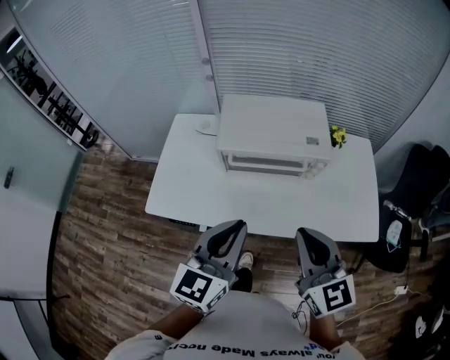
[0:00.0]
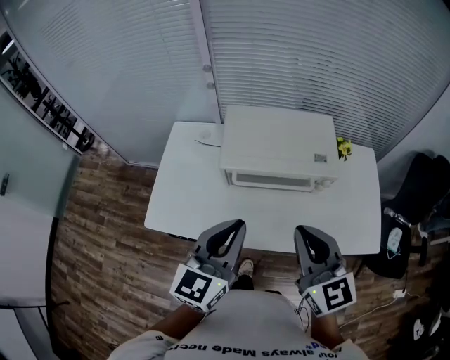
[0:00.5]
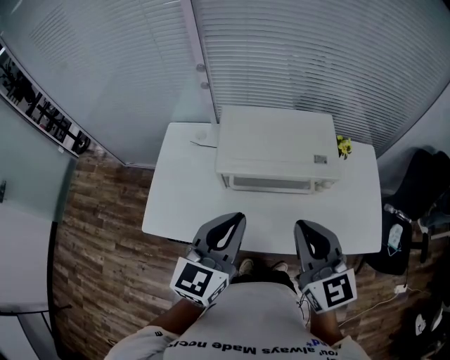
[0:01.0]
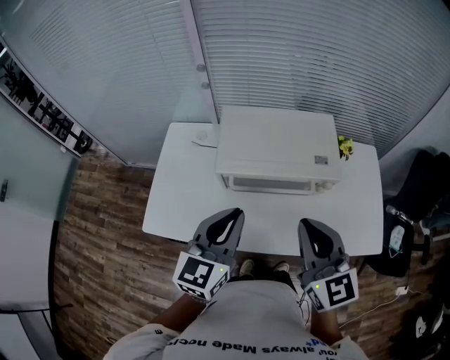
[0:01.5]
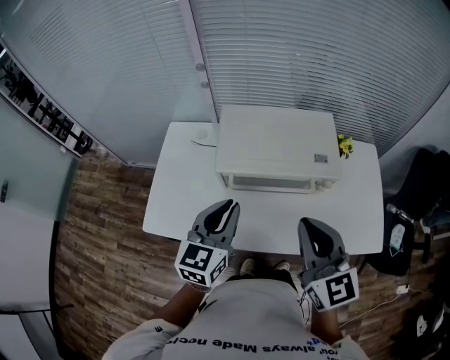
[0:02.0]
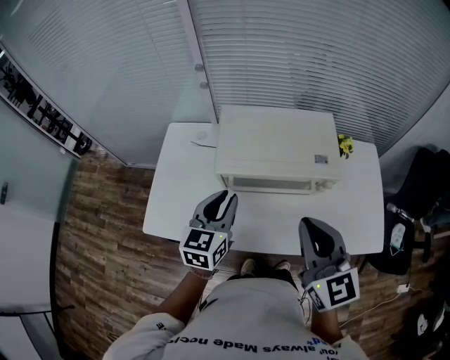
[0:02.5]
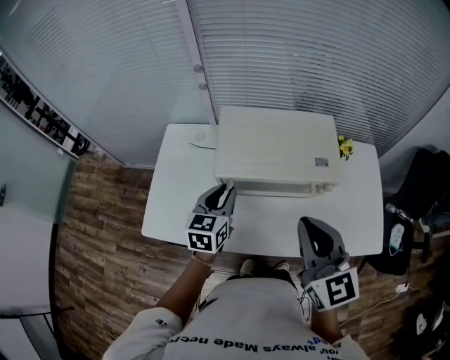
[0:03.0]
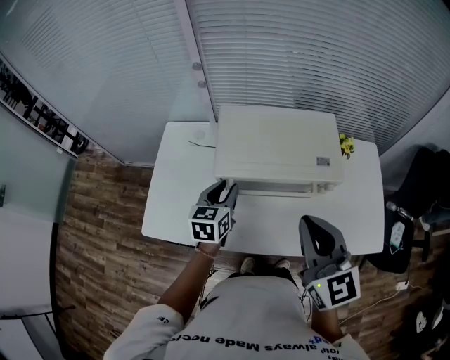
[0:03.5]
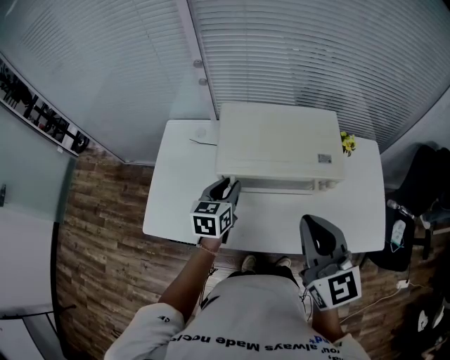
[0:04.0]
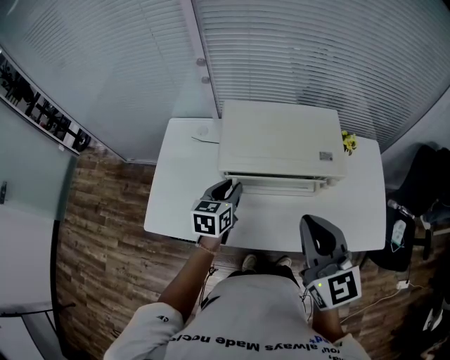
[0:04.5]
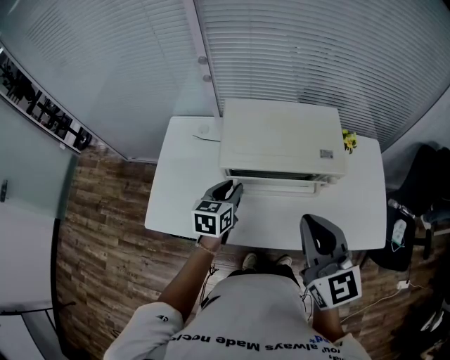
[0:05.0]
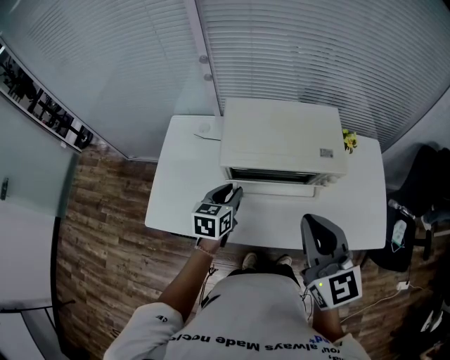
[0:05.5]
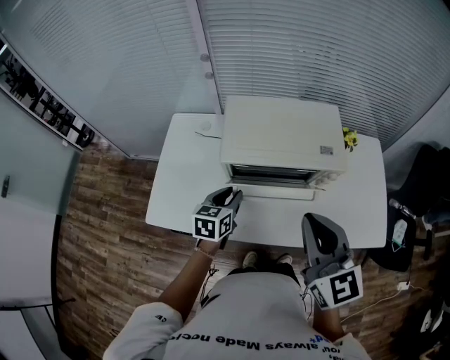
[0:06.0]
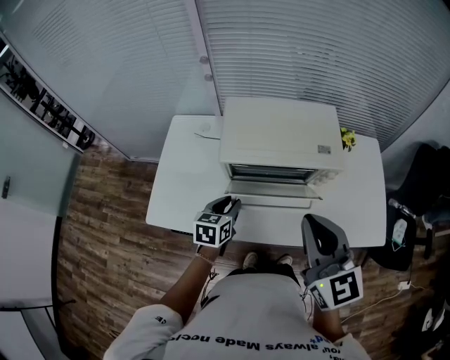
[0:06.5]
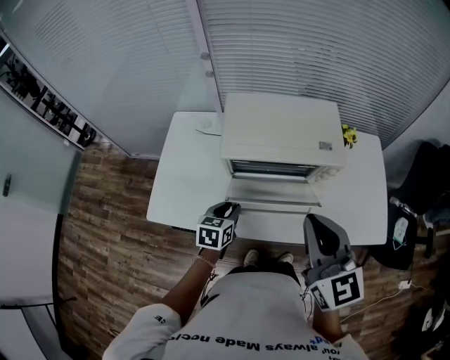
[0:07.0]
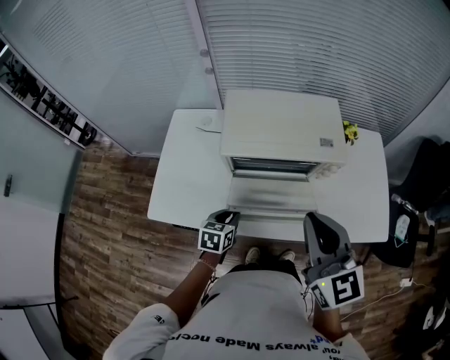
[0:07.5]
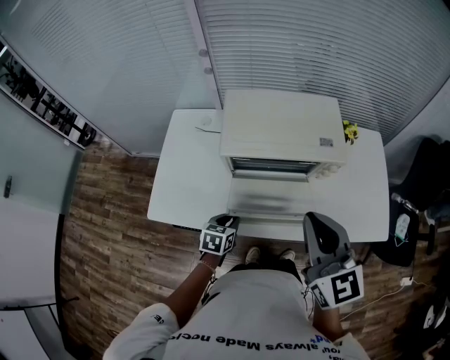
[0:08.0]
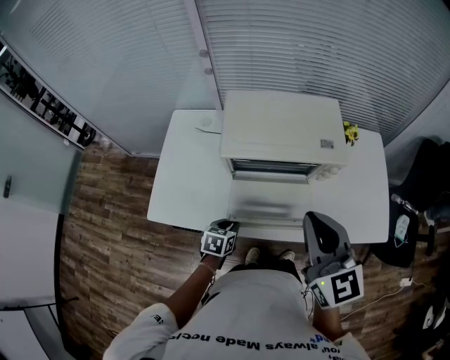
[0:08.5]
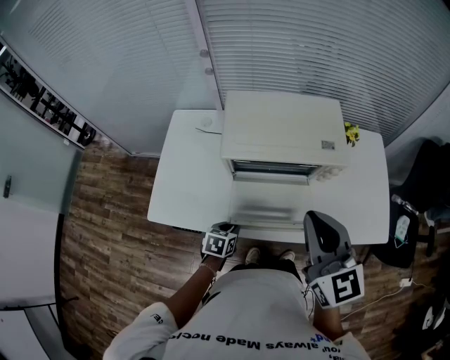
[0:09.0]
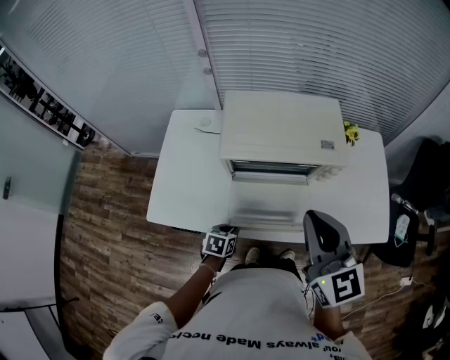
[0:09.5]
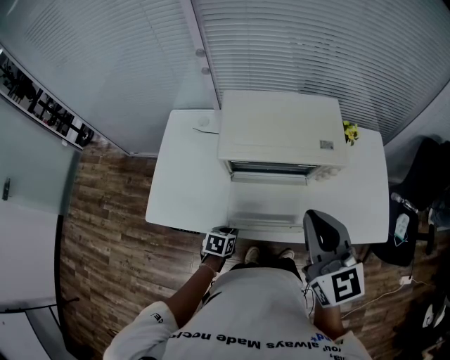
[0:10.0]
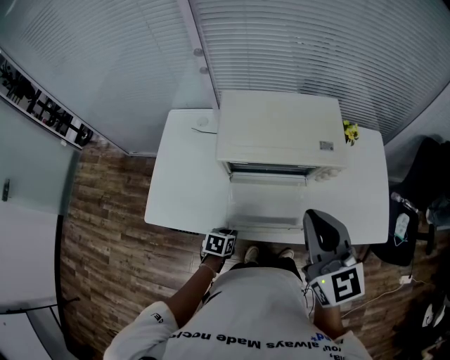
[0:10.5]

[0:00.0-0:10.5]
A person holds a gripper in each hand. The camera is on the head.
0:00.0 to 0:02.0: The right gripper moves forward, some 10 cm. The left gripper travels forward and downward by about 15 cm.
0:02.0 to 0:04.0: The left gripper travels downward and forward by approximately 15 cm, and opens.
0:04.0 to 0:06.5: The left gripper shifts some 10 cm backward and downward.
0:06.5 to 0:08.5: The left gripper heads downward and backward, covering some 15 cm.
0:08.5 to 0:10.5: The left gripper shifts about 5 cm downward.

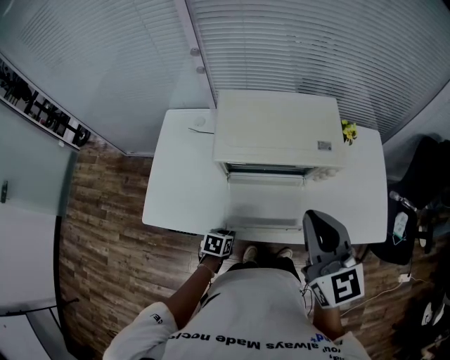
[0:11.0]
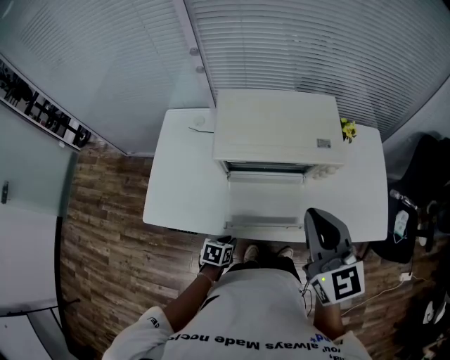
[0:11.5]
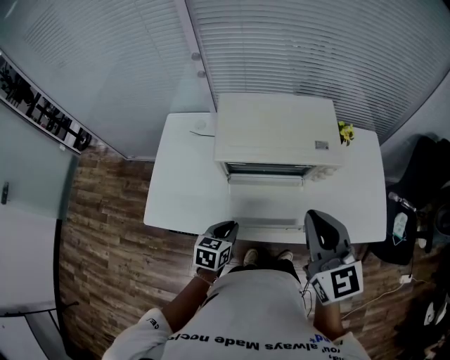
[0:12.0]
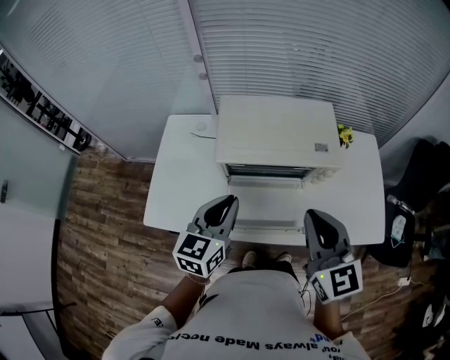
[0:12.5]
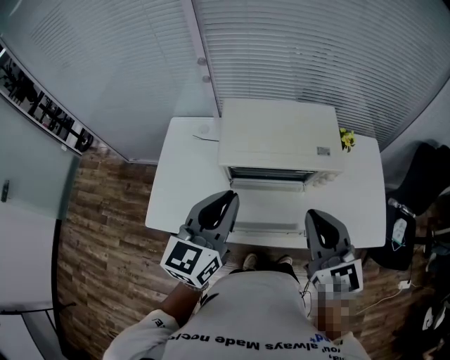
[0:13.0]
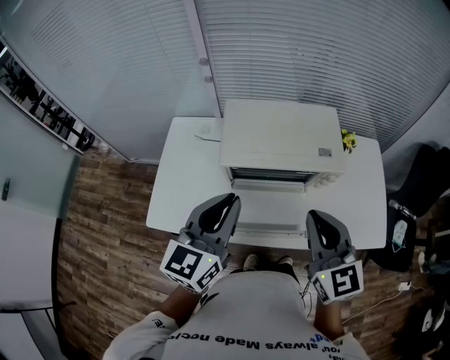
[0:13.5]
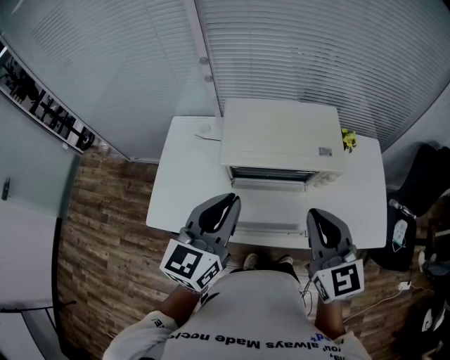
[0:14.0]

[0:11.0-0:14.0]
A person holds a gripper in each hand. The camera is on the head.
0:11.0 to 0:12.5: The left gripper is displaced upward by some 35 cm, and points its fingers about 50 degrees further upward.
0:12.5 to 0:14.0: The left gripper heads upward, covering approximately 10 cm.

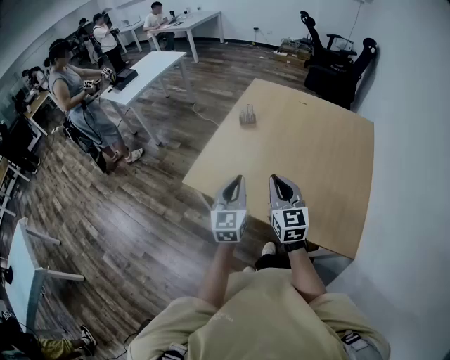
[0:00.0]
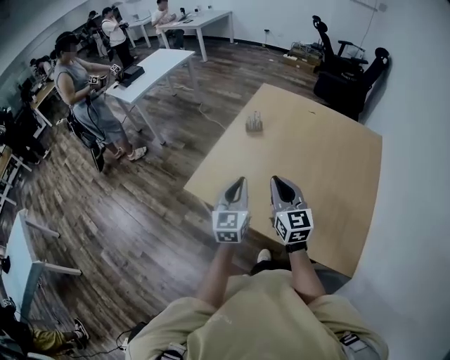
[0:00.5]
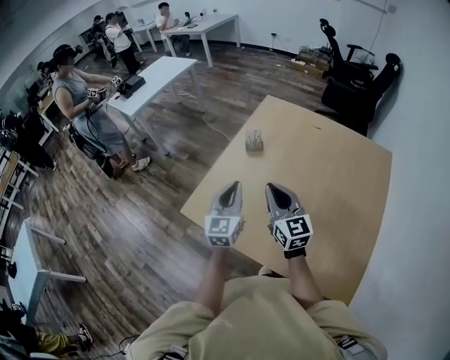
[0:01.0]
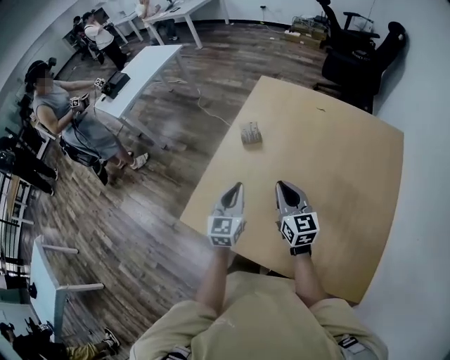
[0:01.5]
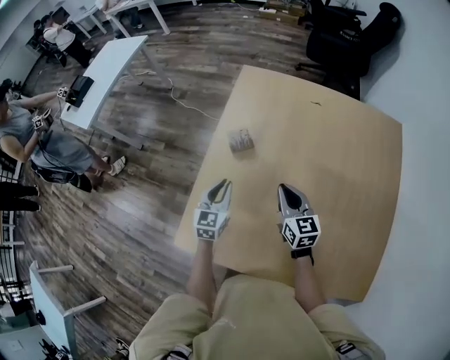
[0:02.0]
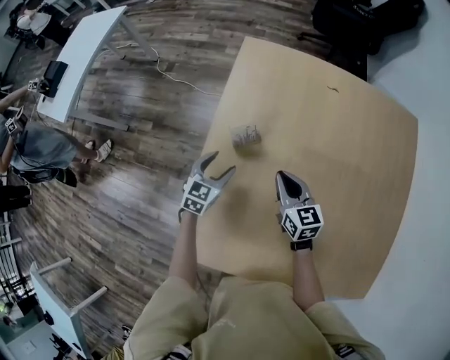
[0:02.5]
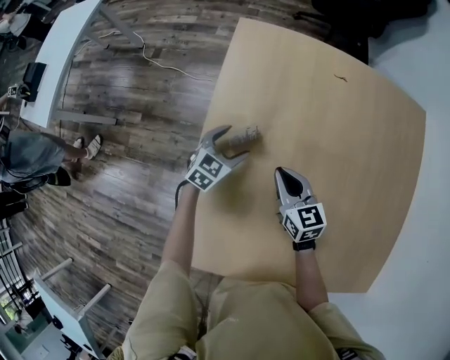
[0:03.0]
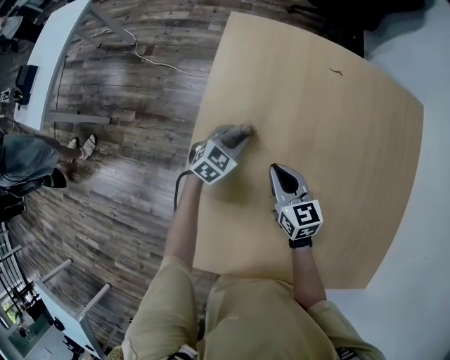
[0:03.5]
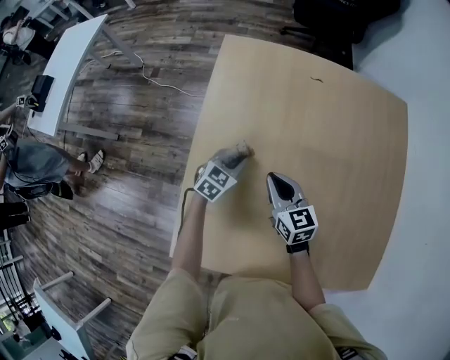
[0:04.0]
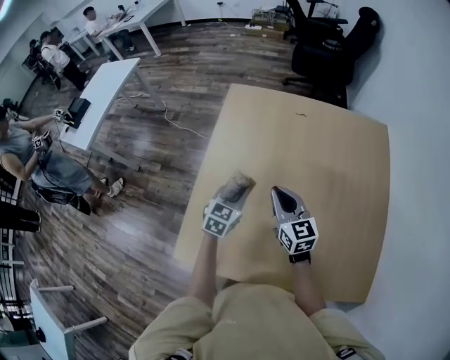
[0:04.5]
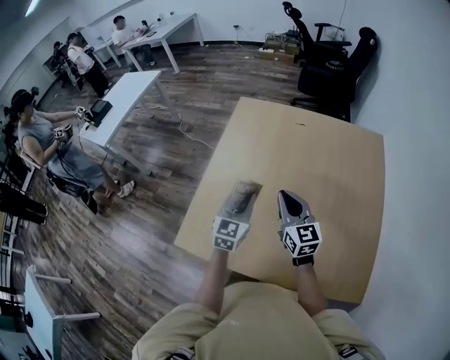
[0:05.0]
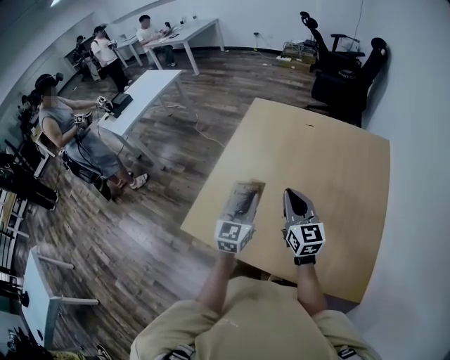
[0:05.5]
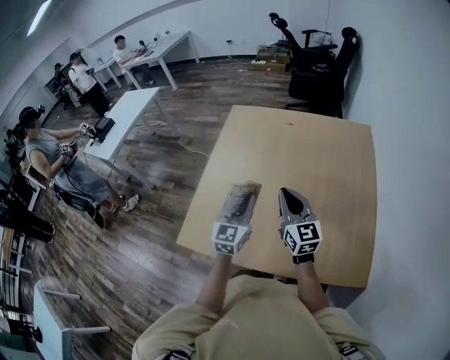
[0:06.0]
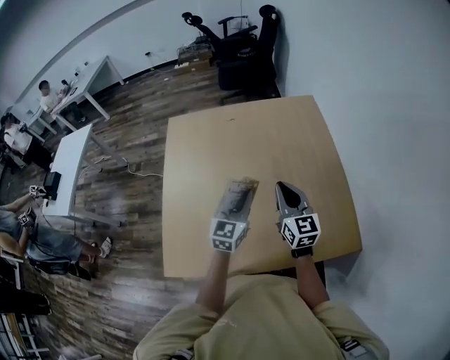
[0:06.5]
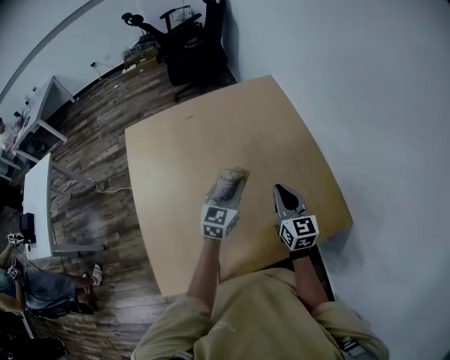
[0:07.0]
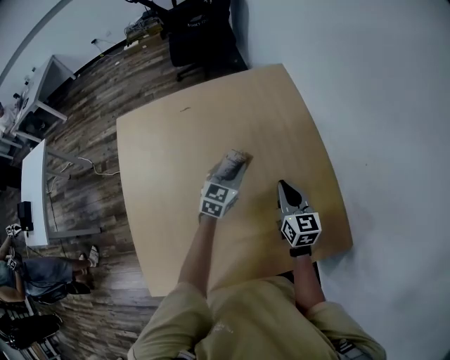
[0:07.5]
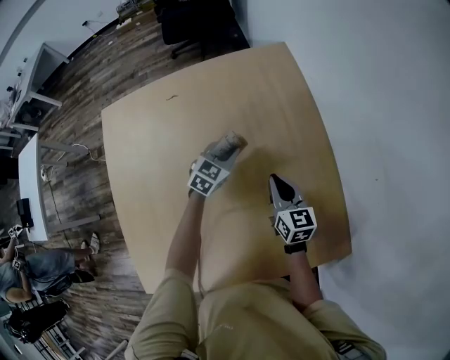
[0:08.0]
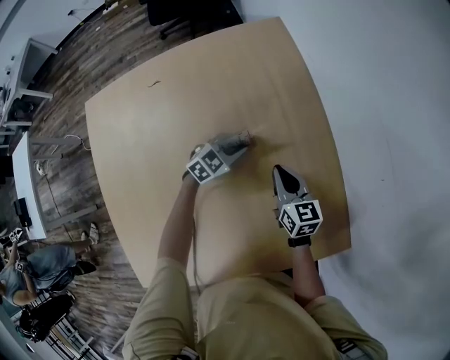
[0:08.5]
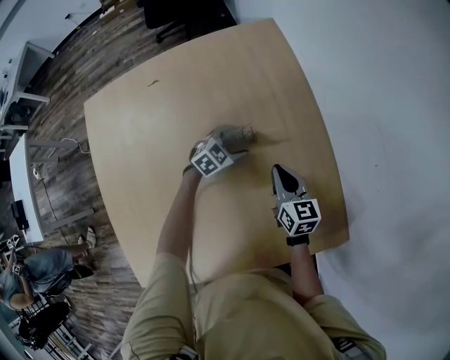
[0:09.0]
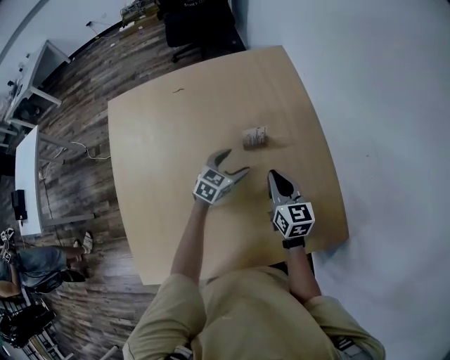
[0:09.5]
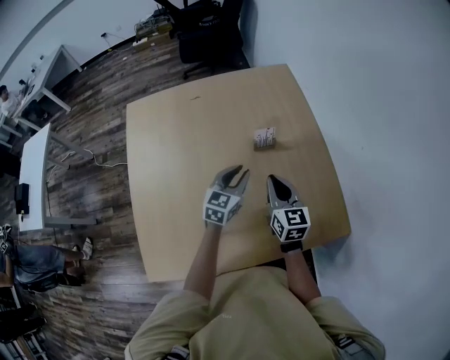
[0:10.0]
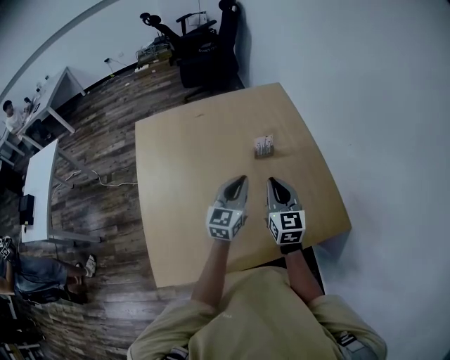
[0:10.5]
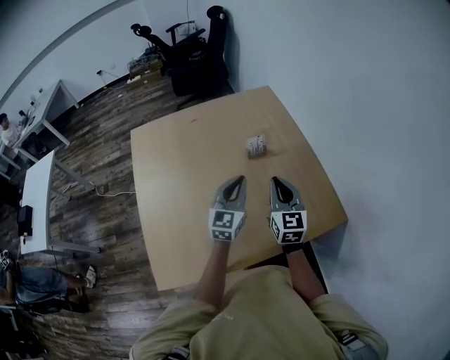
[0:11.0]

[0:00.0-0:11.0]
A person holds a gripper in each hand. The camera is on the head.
0:00.0 to 0:02.0: The two grippers go roughly 40 cm forward and downward. The right gripper rotates about 20 degrees; the left gripper changes its angle by roughly 20 degrees.
0:02.0 to 0:03.5: The left gripper shifts roughly 30 cm forward and downward, swivels roughly 40 degrees, and opens, then closes once more. The right gripper travels forward, downward and to the left by approximately 20 cm.
0:03.5 to 0:05.5: The right gripper is displaced backward, upward and to the right by some 40 cm, and rotates about 30 degrees. Meanwhile the left gripper heads backward and upward, covering about 50 cm, and tilts its fingers about 30 degrees upward.
0:05.5 to 0:07.5: The right gripper shifts by some 30 cm, and turns by some 40 degrees, while the left gripper ends up roughly 40 cm from where it was, and changes its angle by some 50 degrees.
0:07.5 to 0:09.0: The right gripper goes roughly 15 cm downward and forward, while the left gripper shifts some 20 cm downward and forward, rotates some 40 degrees, and opens its fingers.
0:09.0 to 0:11.0: The right gripper travels backward and upward by roughly 30 cm, and changes its angle by approximately 30 degrees, while the left gripper travels upward and backward by about 40 cm, tilts its fingers about 40 degrees upward, and closes.

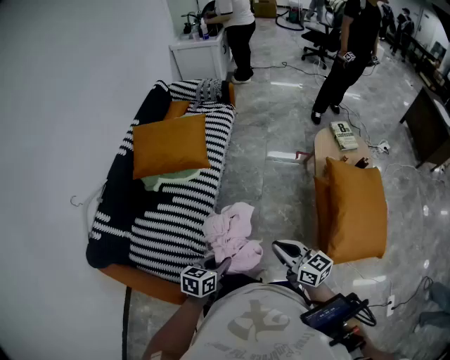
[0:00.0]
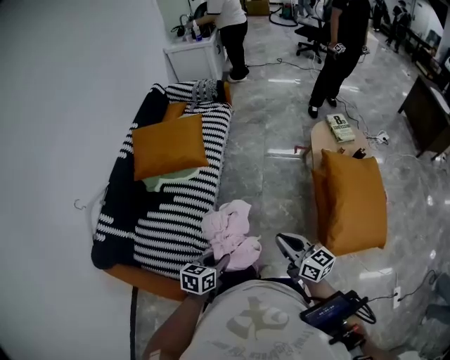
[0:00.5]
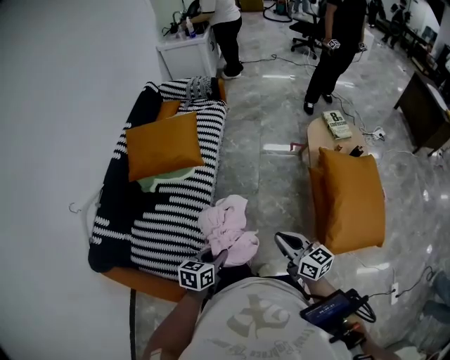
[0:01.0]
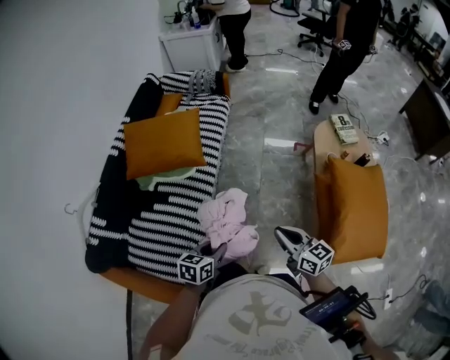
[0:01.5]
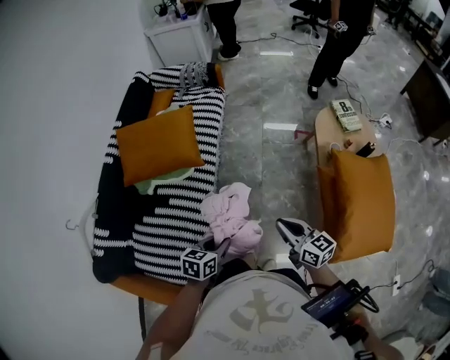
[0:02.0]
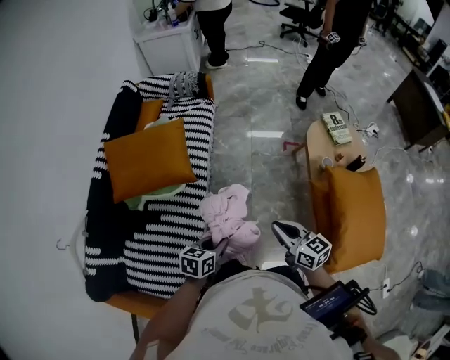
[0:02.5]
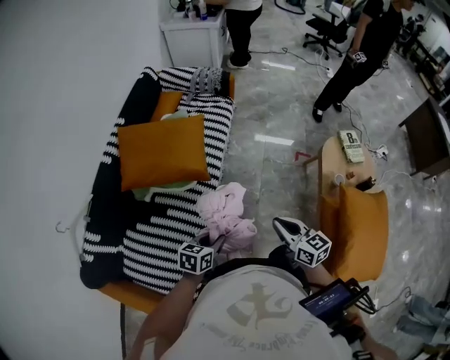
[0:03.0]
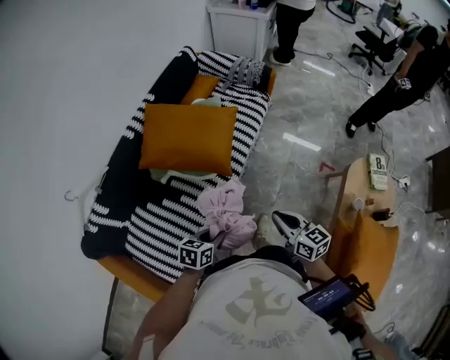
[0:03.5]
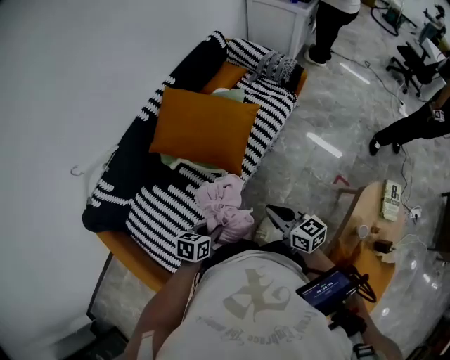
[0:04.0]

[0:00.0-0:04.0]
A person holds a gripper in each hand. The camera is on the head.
0:00.0 to 0:02.0: The grippers both shift forward by approximately 15 cm.
0:02.0 to 0:04.0: The left gripper shifts by some 20 cm, and changes its angle by roughly 30 degrees. Meanwhile the right gripper ends up some 30 cm from where it was, and rotates roughly 40 degrees.
